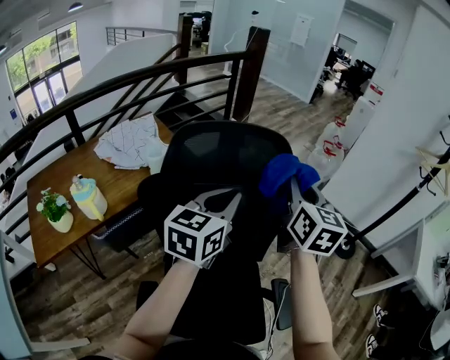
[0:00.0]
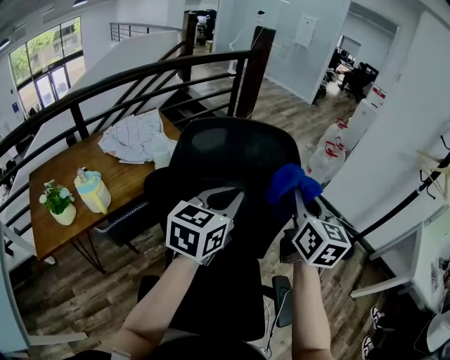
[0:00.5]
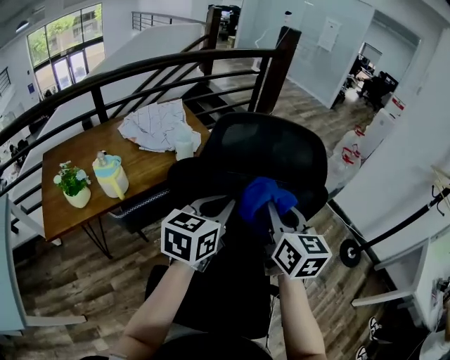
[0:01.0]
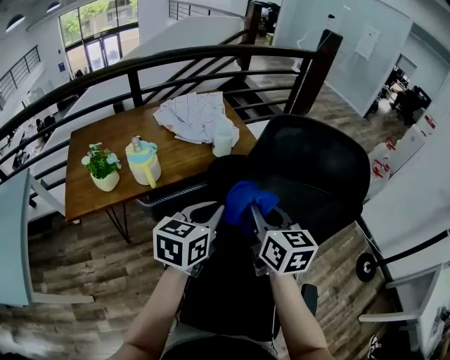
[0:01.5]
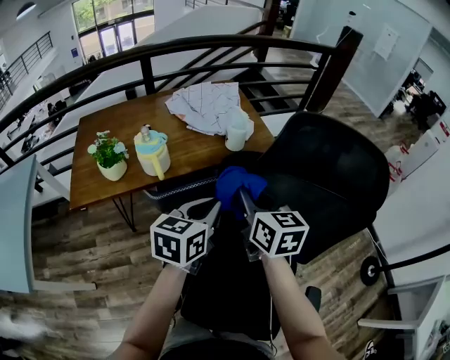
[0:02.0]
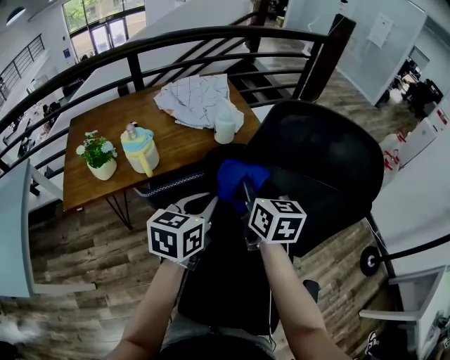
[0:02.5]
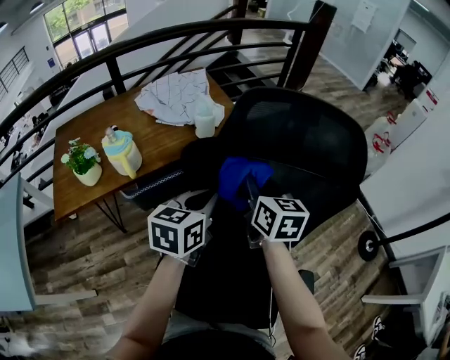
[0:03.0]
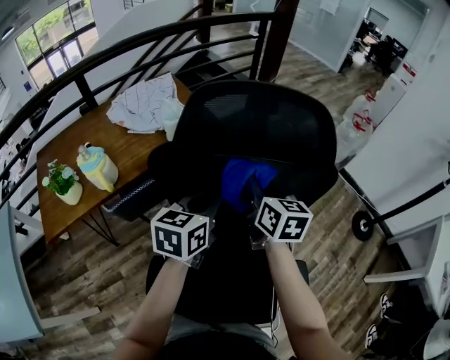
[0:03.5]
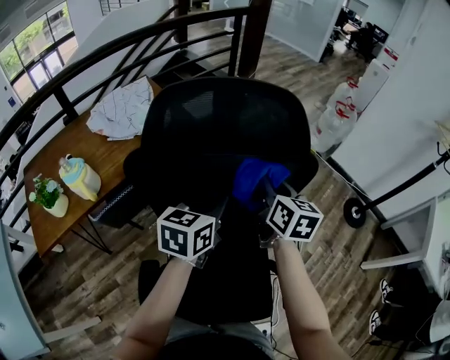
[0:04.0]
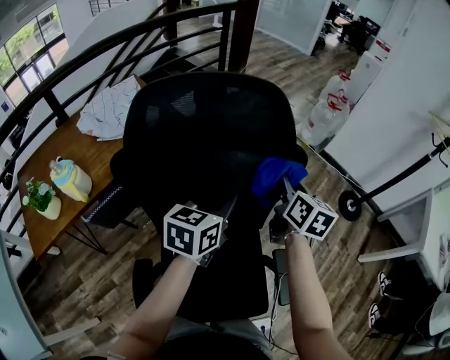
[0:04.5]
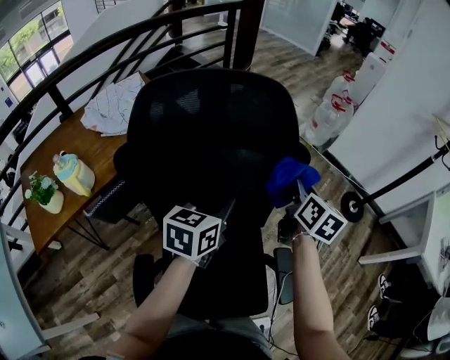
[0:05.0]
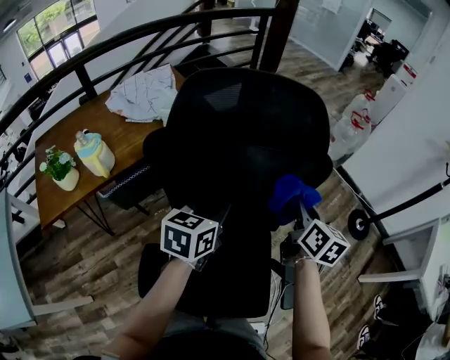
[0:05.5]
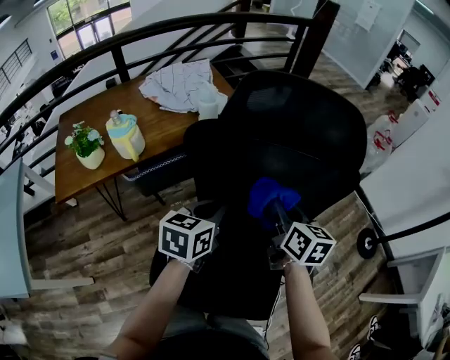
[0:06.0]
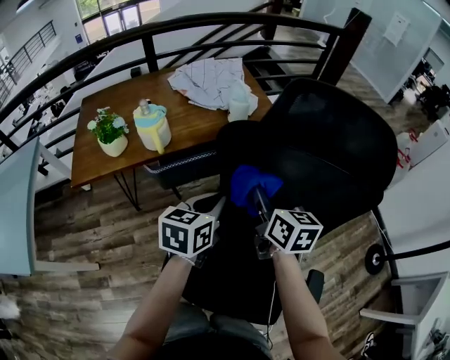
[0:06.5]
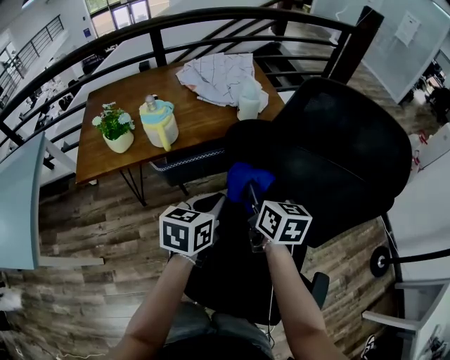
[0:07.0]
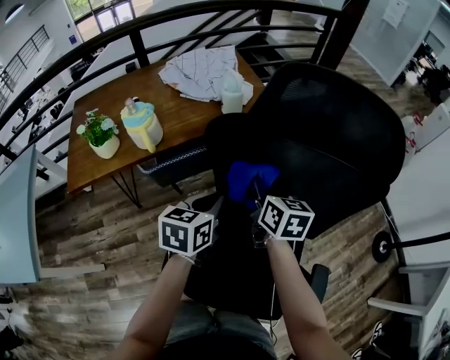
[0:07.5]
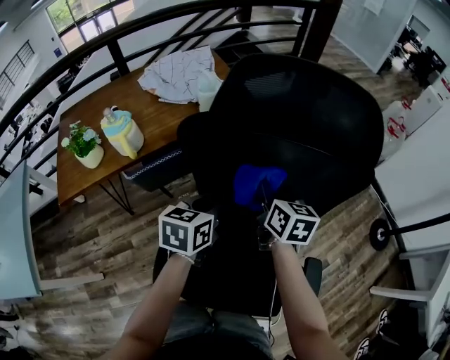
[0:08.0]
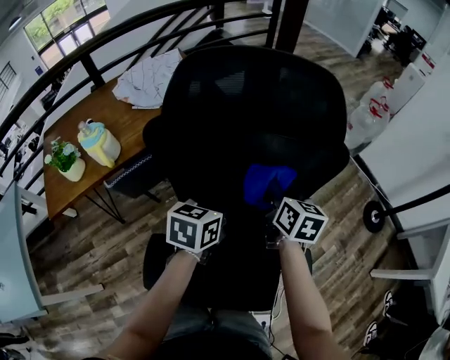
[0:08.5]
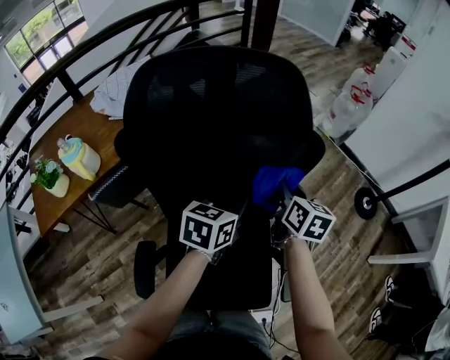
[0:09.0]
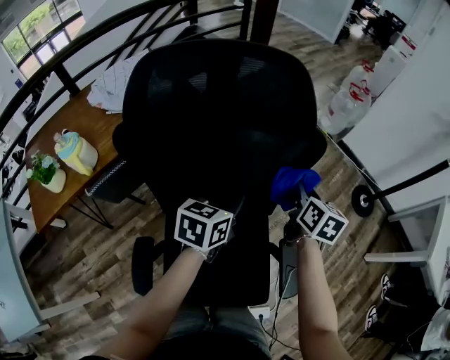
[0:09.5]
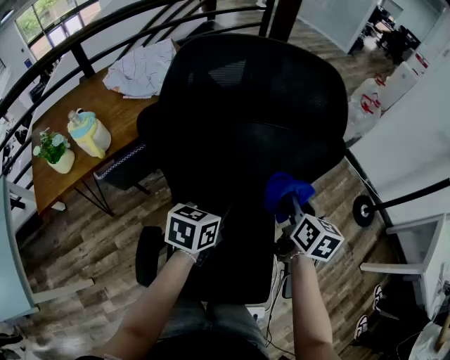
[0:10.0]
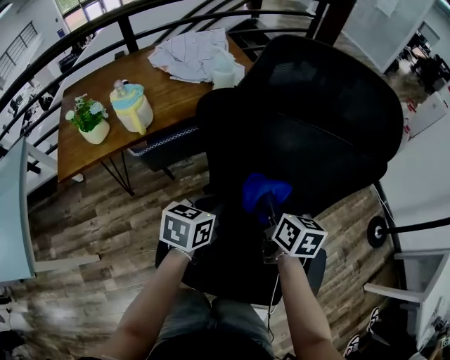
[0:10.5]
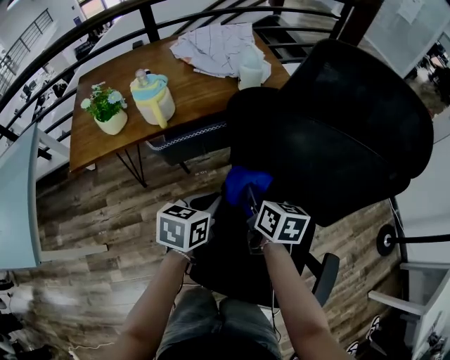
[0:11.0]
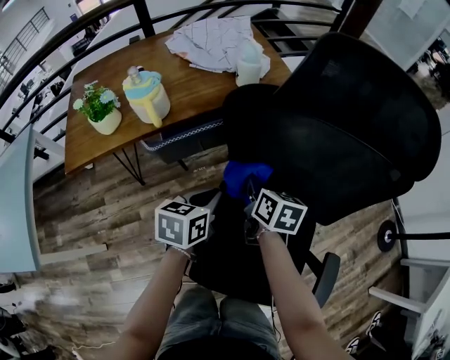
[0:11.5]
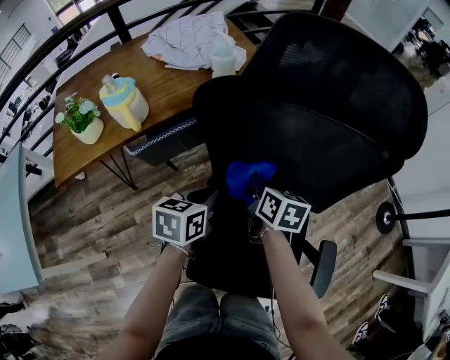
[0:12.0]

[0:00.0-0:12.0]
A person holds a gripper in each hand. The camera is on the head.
0:00.0 to 0:02.0: The left gripper moves some 30 cm, and rotates some 30 degrees, while the right gripper changes place by roughly 35 cm, and swivels approximately 40 degrees.
0:02.0 to 0:04.0: The left gripper shifts by some 25 cm, and swivels approximately 20 degrees, while the right gripper ends up roughly 30 cm from where it was, and swivels some 30 degrees.
0:04.0 to 0:06.0: The right gripper heads backward and to the left, covering some 10 cm; the left gripper heads to the left and backward, covering about 15 cm.
0:06.0 to 0:08.0: The left gripper travels to the left and back again, about 10 cm each way, while the right gripper shifts about 5 cm forward, and moves some 15 cm to the left and comes back.
0:08.0 to 0:10.0: The right gripper heads to the right, covering approximately 20 cm; the left gripper is displaced to the right by approximately 10 cm.
0:10.0 to 0:12.0: The left gripper moves approximately 20 cm; the right gripper shifts by about 25 cm, and rotates about 20 degrees.

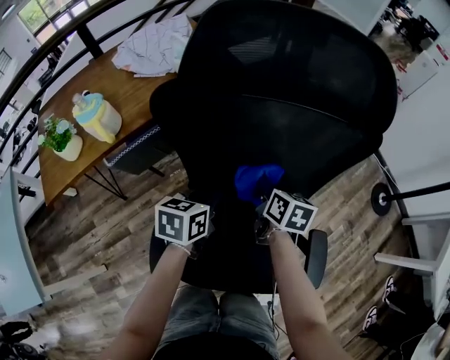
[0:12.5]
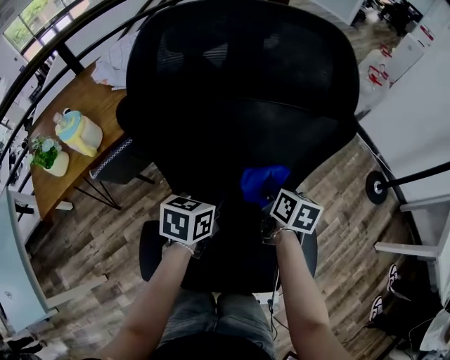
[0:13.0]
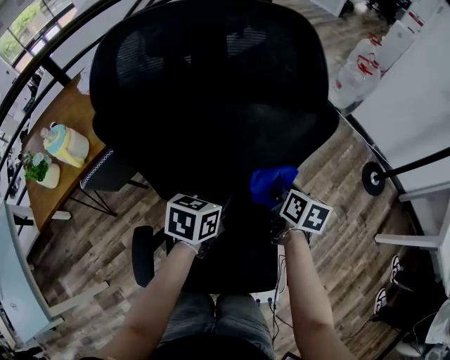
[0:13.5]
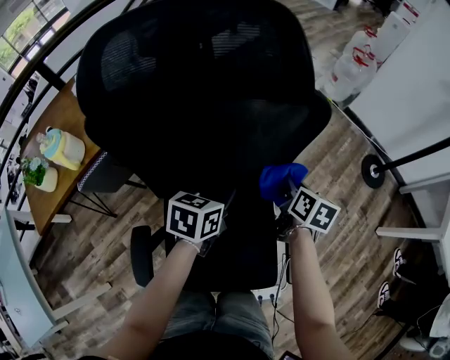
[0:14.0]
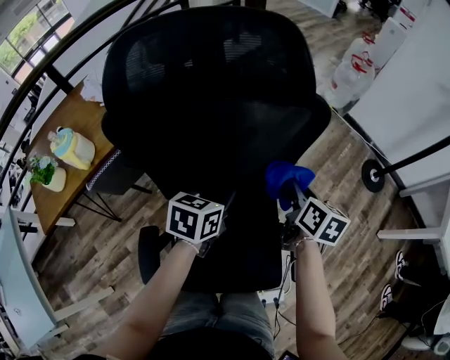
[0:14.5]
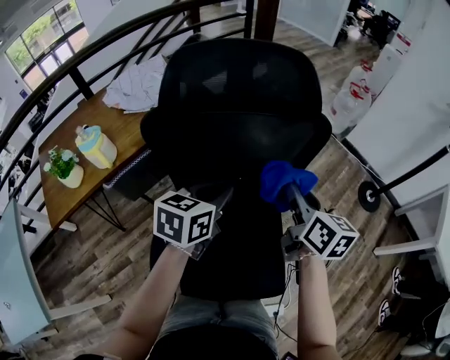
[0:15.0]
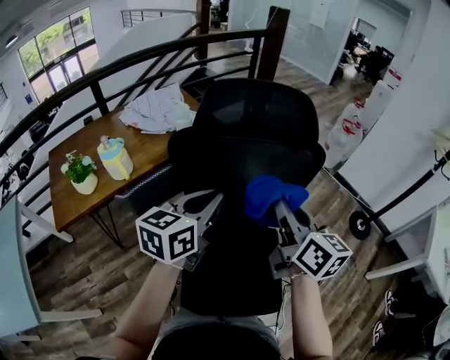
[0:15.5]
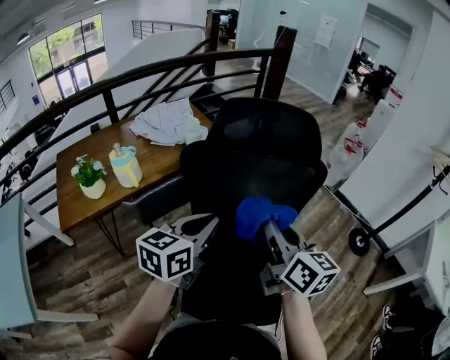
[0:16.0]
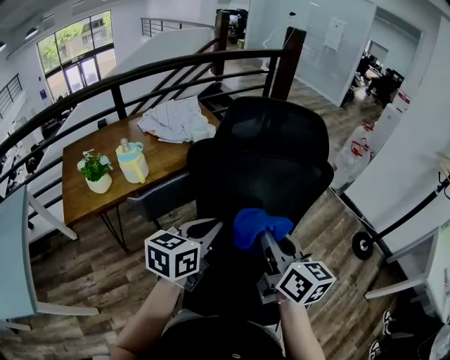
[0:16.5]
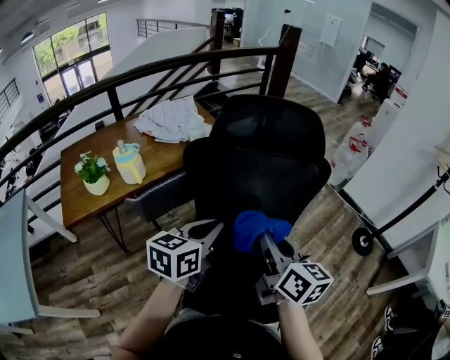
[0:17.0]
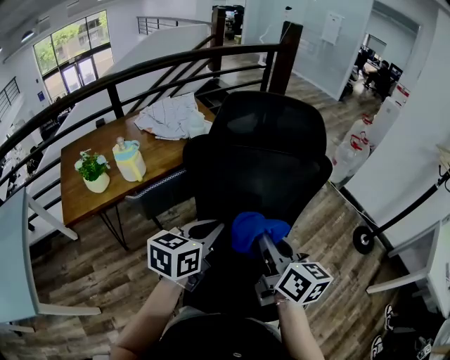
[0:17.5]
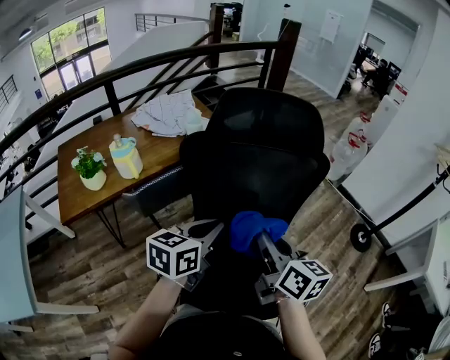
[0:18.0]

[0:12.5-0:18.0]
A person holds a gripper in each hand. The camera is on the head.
0:12.5 to 0:14.5: The grippers both shift to the right by about 15 cm.
0:14.5 to 0:16.0: The right gripper goes some 35 cm upward, to the left and backward, and changes its angle by about 30 degrees. Meanwhile the left gripper travels upward, backward and to the left by roughly 25 cm, and turns by roughly 30 degrees.
0:16.0 to 0:18.0: The right gripper goes some 5 cm downward, while the left gripper ends up approximately 5 cm from where it was.

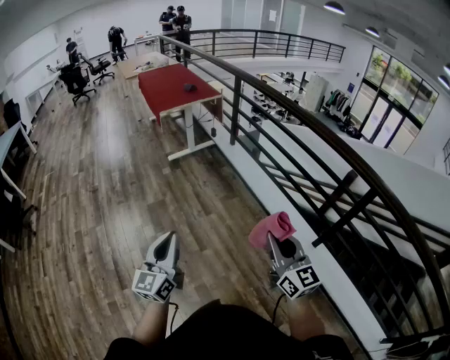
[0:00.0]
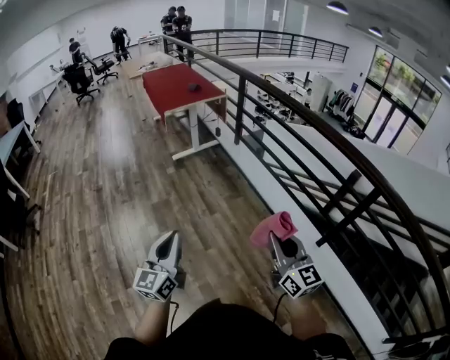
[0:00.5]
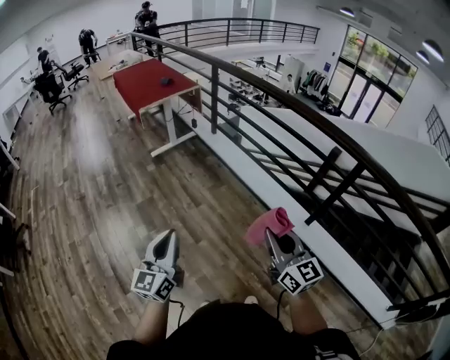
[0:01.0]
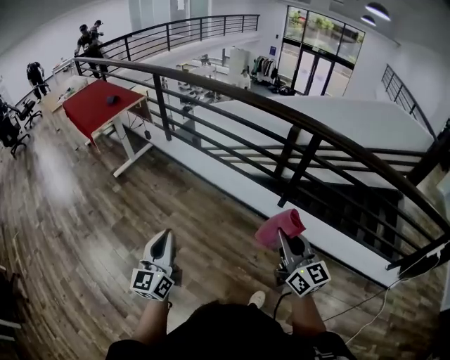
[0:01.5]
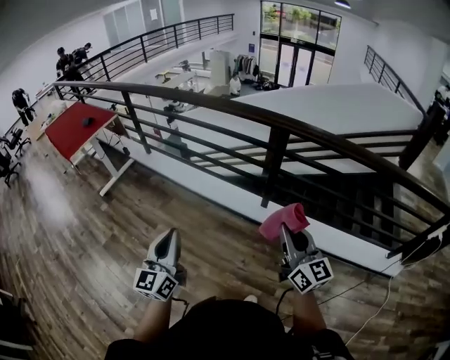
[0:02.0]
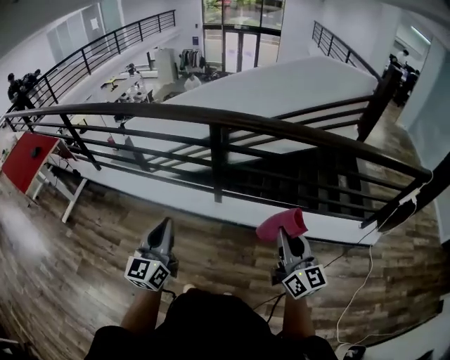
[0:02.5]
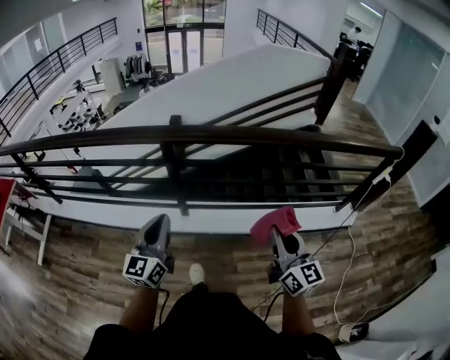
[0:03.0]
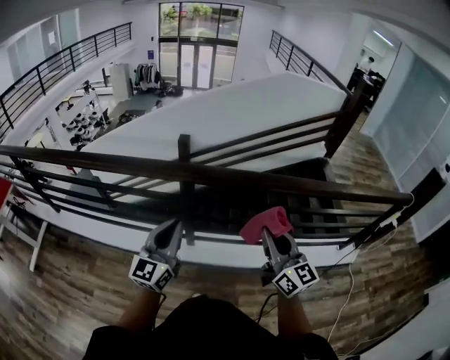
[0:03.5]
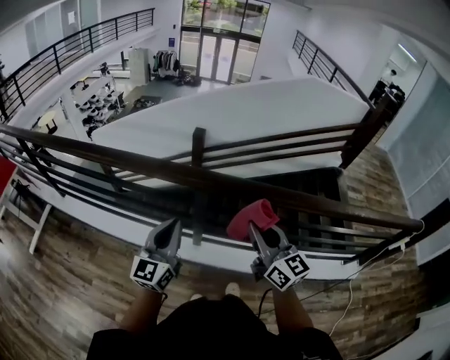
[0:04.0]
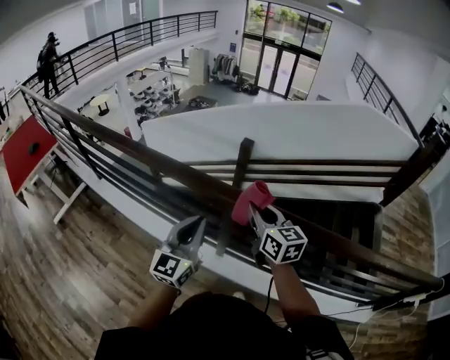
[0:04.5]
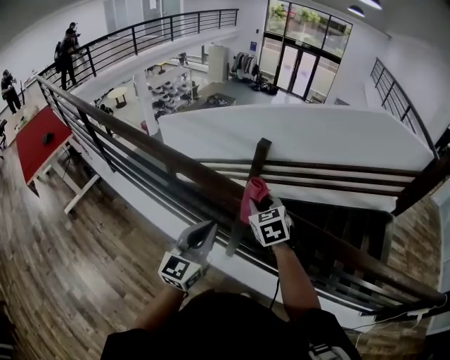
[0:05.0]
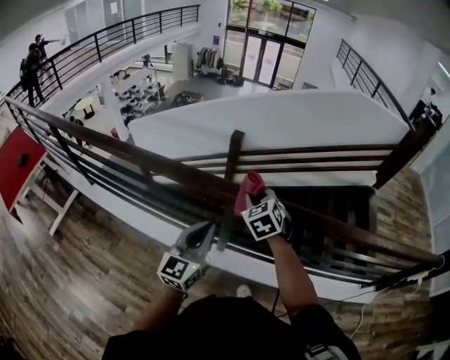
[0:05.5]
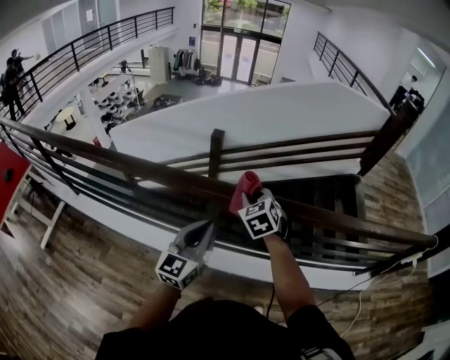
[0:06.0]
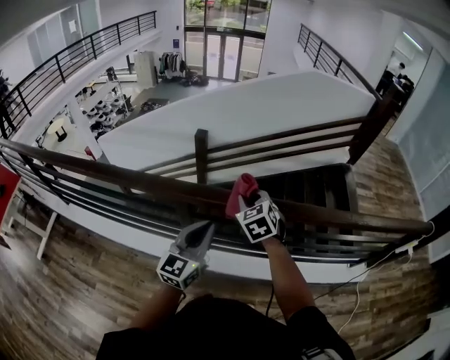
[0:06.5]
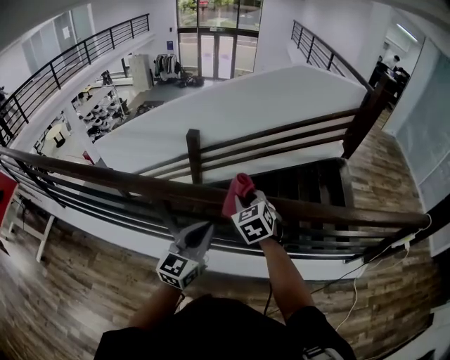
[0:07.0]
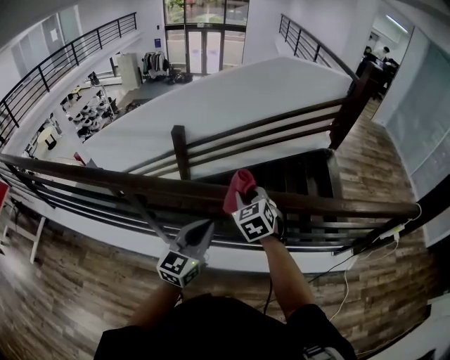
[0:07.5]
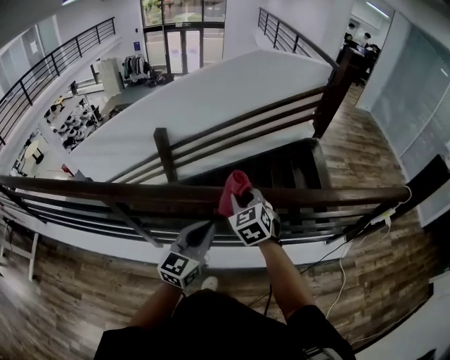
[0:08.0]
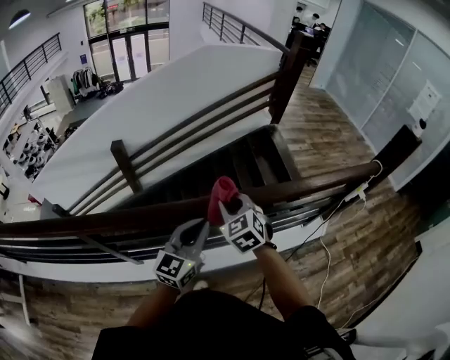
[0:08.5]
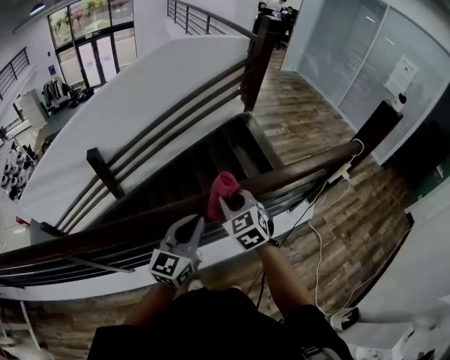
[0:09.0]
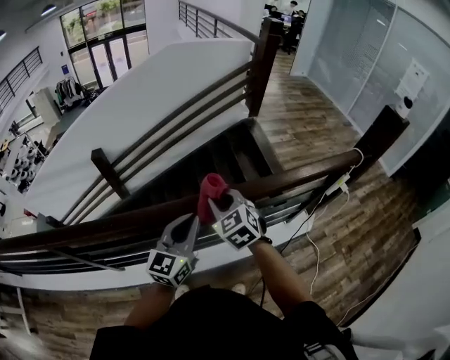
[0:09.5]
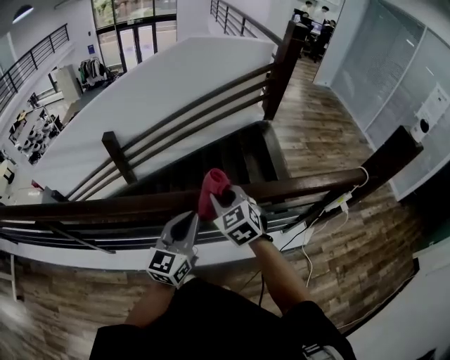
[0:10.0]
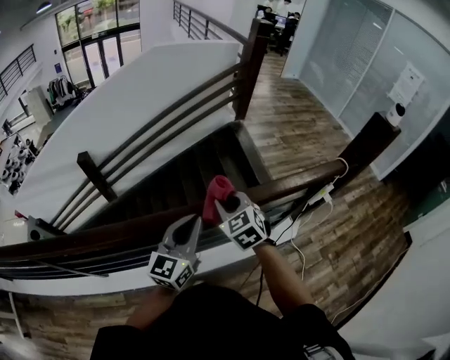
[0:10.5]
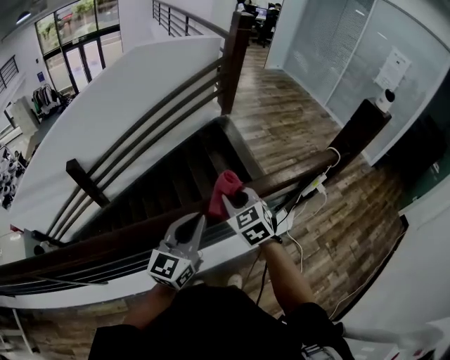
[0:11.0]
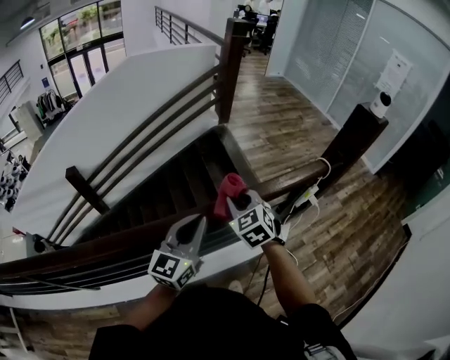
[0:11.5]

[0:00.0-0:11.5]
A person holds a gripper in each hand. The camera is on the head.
0:00.0 to 0:02.0: The right gripper changes place by about 30 cm, and rotates some 30 degrees. Meanwhile the left gripper ends up about 25 cm from where it was, and turns by roughly 30 degrees.
0:02.0 to 0:04.0: The left gripper moves about 40 cm, and swivels roughly 20 degrees. Meanwhile the right gripper ends up roughly 30 cm from where it was.
0:04.0 to 0:06.0: The left gripper shifts some 5 cm to the right. The right gripper moves forward and downward, some 20 cm, and tips its fingers downward by some 40 degrees.
0:06.0 to 0:07.5: Both grippers move to the right, some 25 cm.
0:07.5 to 0:09.5: The left gripper goes some 25 cm to the right and forward; the right gripper goes approximately 25 cm to the right.
0:09.5 to 0:11.5: The grippers both shift to the right by some 20 cm.
